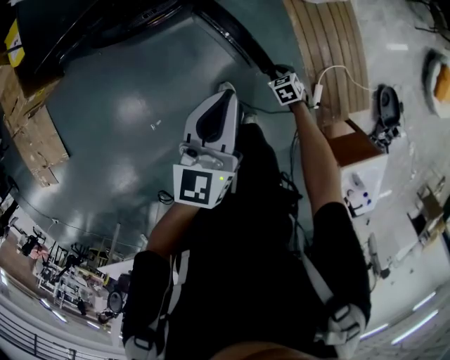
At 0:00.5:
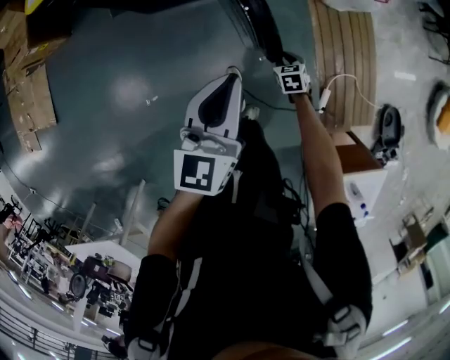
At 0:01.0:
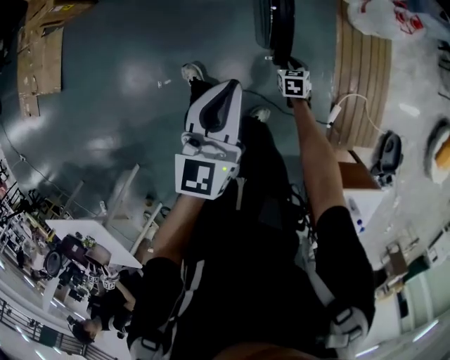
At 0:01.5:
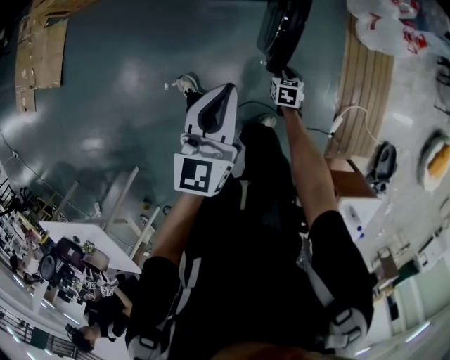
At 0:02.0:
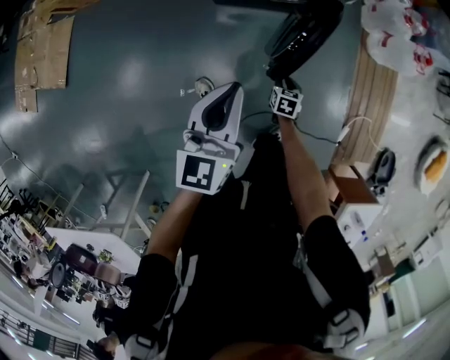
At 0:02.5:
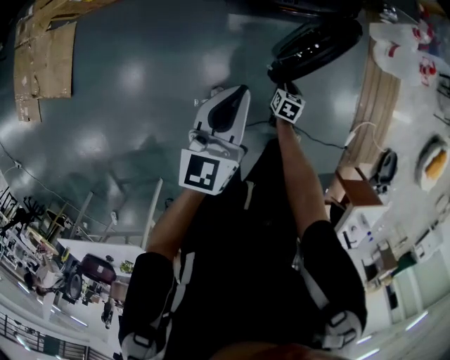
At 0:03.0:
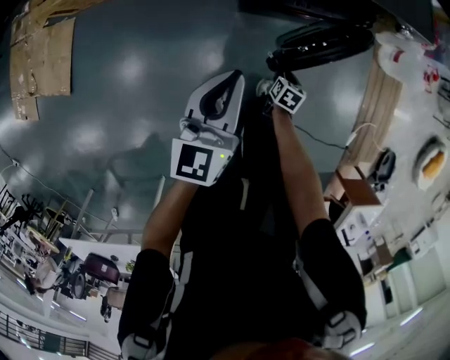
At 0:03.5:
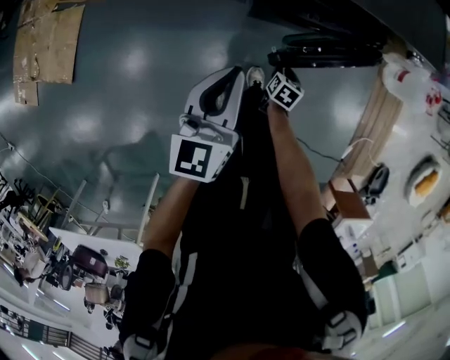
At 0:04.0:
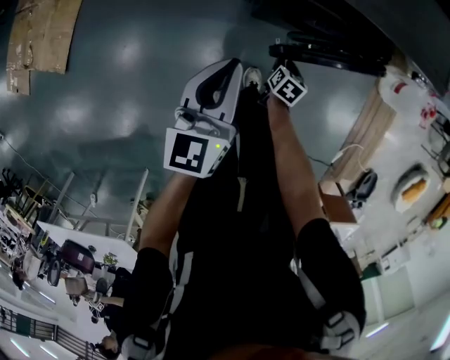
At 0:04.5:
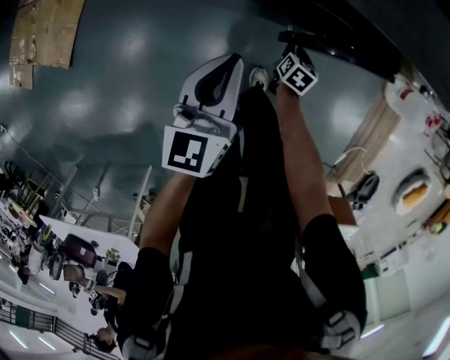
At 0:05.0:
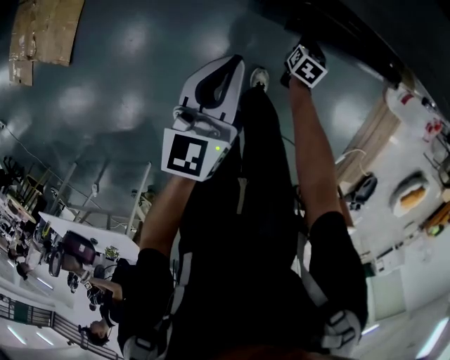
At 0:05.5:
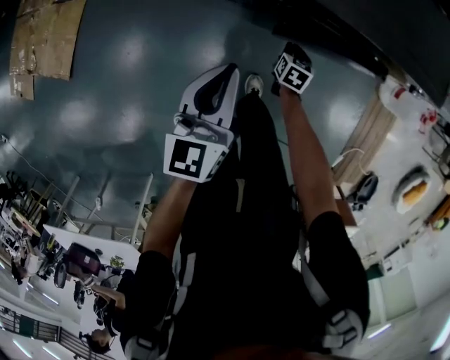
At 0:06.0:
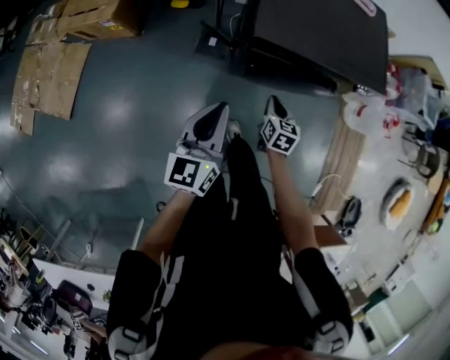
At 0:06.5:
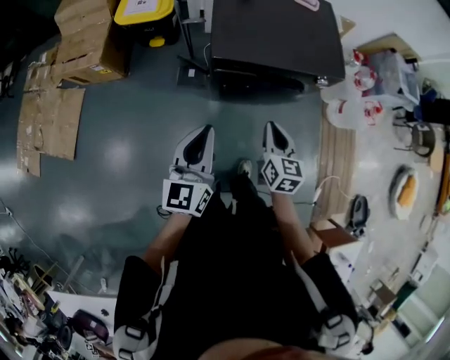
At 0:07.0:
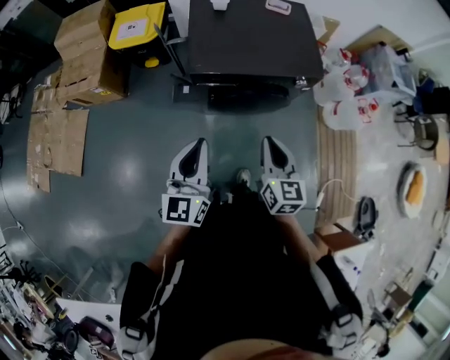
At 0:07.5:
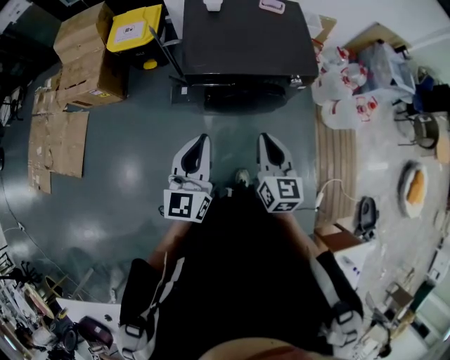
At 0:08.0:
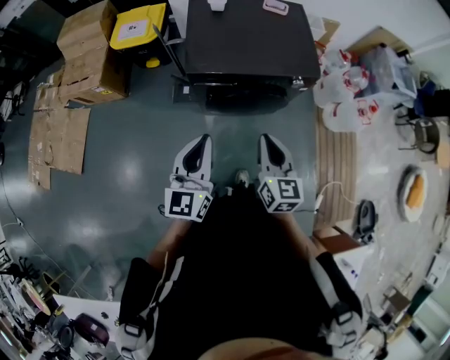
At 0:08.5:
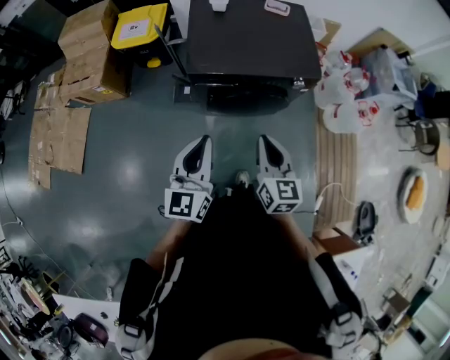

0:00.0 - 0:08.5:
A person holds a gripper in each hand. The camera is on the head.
0:00.0 - 0:02.0: Both grippers travel together to the left, roughly 35 cm.
0:02.0 - 0:04.0: Both grippers travel together to the left and forward, roughly 30 cm.
0:04.0 - 0:06.5: The left gripper goes some 20 cm upward. The right gripper goes roughly 40 cm upward, points its fingers some 30 degrees further upward, and closes up.
0:06.5 - 0:08.5: The right gripper heads upward and to the right, covering some 10 cm. The left gripper moves to the right, approximately 10 cm.

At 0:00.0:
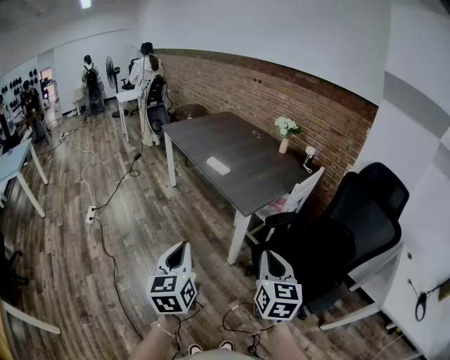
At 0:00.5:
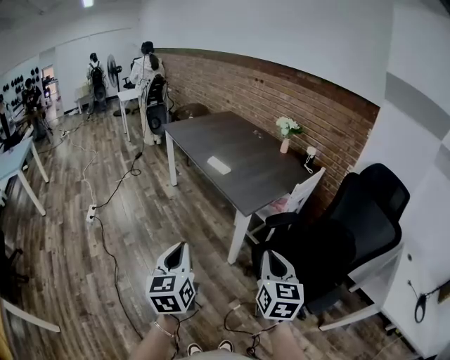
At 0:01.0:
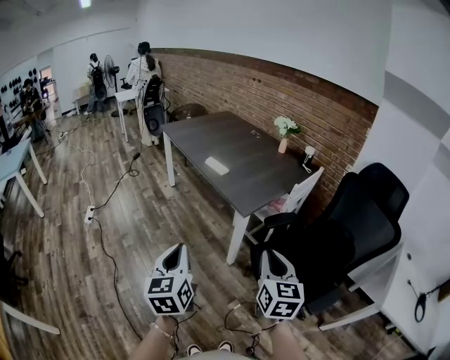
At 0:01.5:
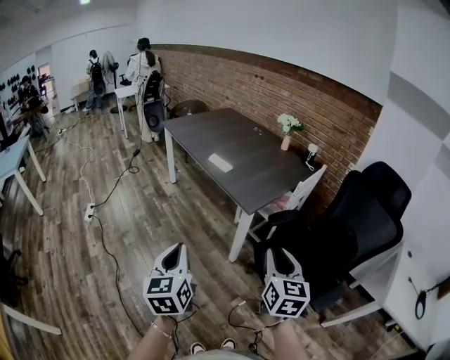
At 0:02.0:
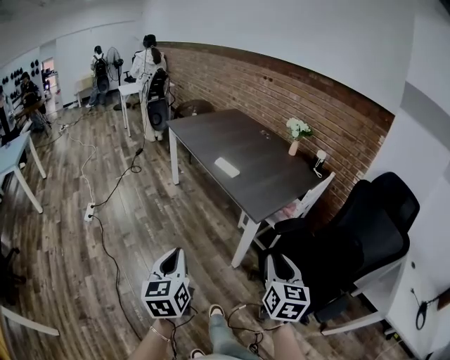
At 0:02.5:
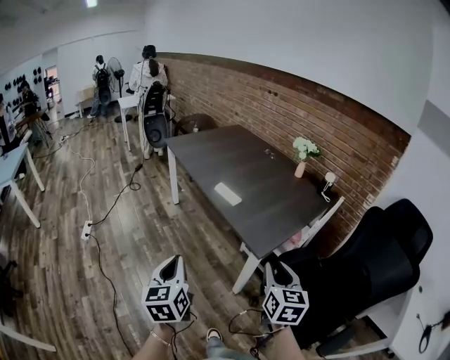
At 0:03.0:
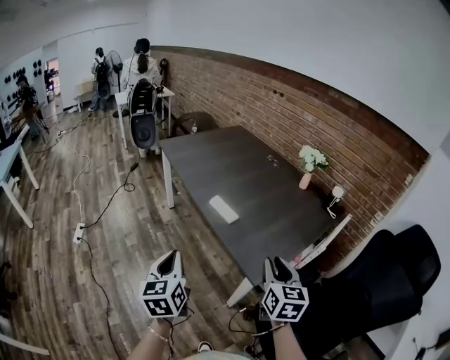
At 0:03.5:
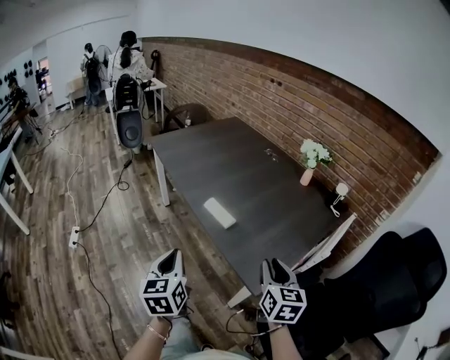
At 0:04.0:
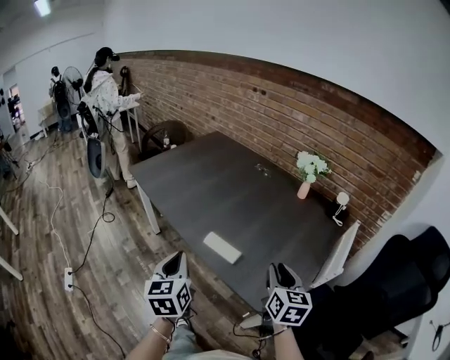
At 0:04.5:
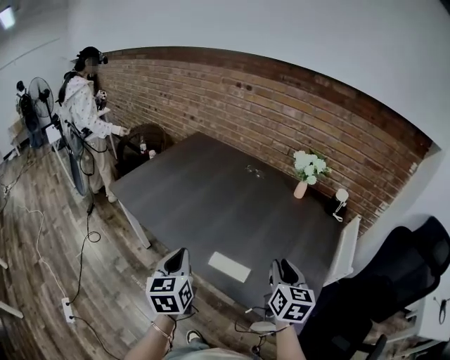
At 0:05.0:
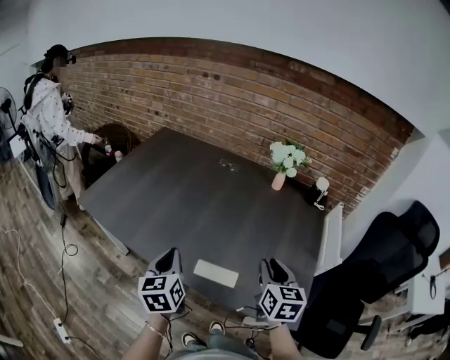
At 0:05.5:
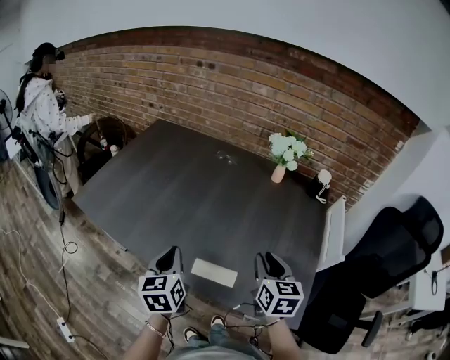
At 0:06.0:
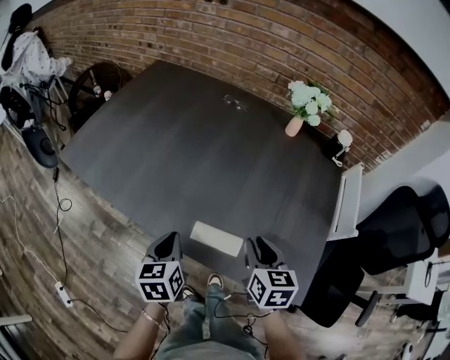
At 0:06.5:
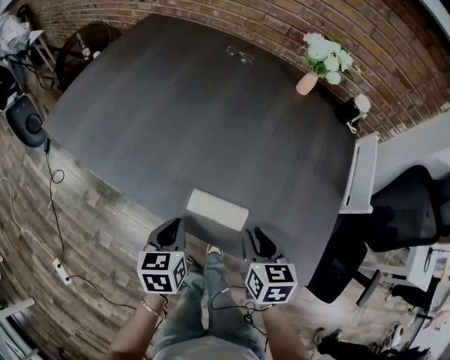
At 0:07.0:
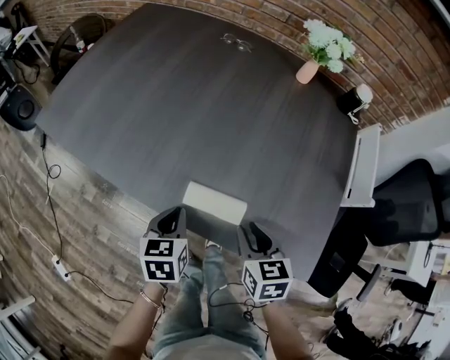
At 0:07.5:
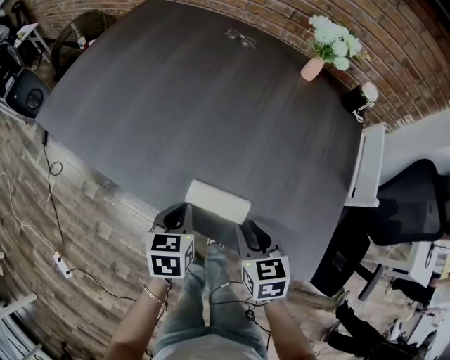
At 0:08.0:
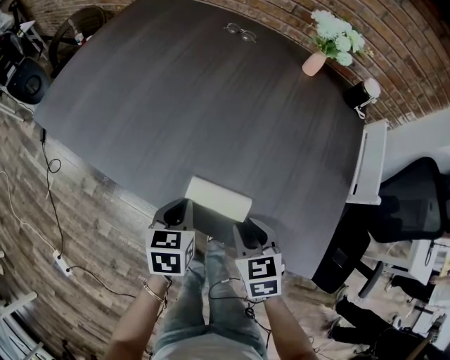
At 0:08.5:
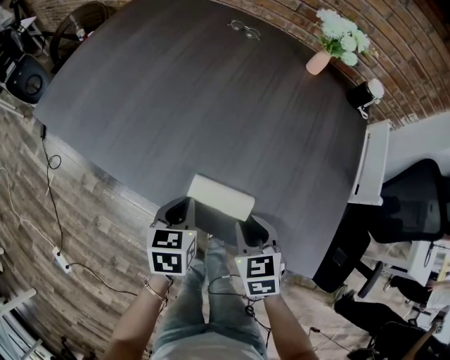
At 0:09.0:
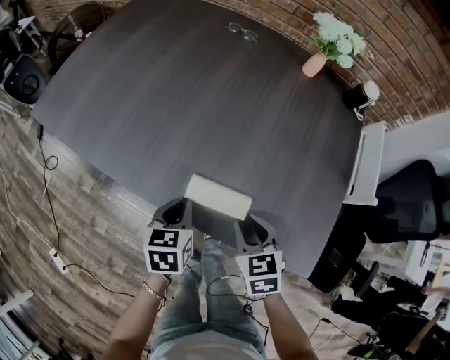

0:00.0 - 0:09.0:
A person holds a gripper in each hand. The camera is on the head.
0:00.0 - 0:02.0: The left gripper travels to the left and forward by roughly 10 cm. Meanwhile the right gripper moves forward, about 5 cm, and opens its fingers.
0:02.0 - 0:04.5: The pair of grippers is taken forward, approximately 70 cm. The right gripper rotates approximately 20 degrees, while the left gripper swivels about 20 degrees.
0:04.5 - 0:07.0: Both grippers move downward, about 20 cm. The right gripper turns by about 30 degrees. Meanwhile the left gripper changes its angle by approximately 30 degrees.
0:07.0 - 0:09.0: The grippers make only small movements.

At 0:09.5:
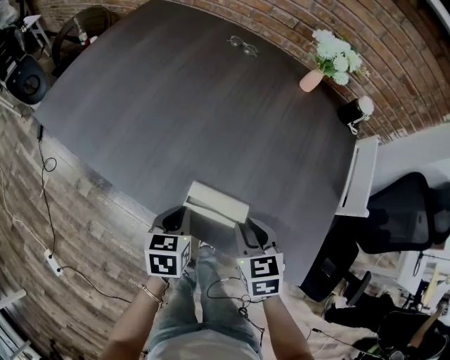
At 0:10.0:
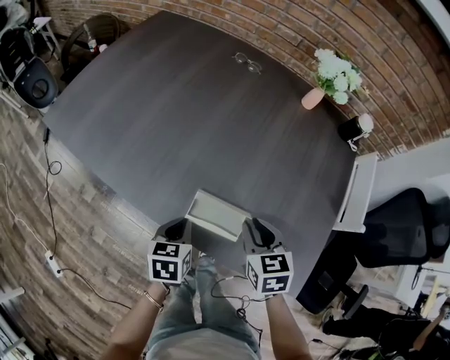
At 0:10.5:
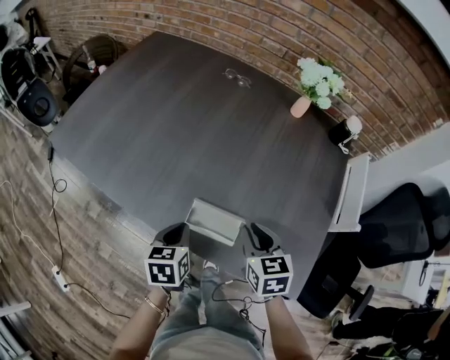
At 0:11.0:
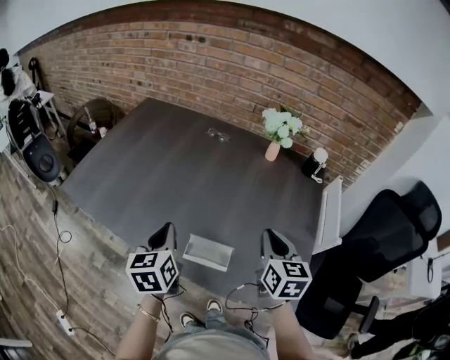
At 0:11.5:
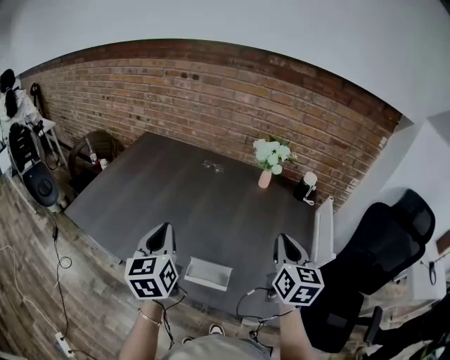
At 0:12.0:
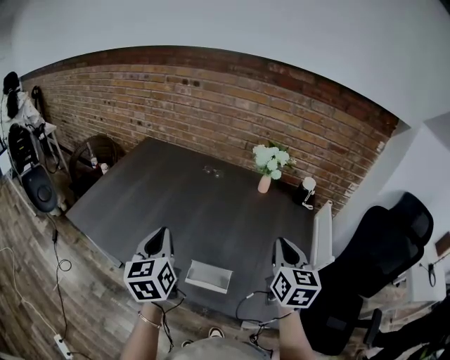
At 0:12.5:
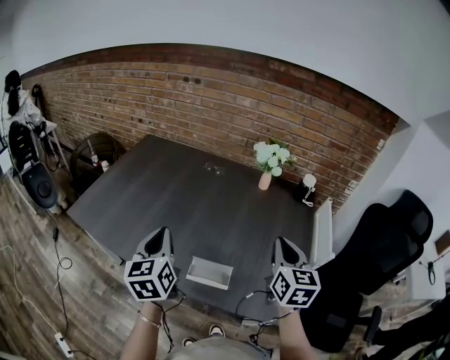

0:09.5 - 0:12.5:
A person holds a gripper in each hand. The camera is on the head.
0:09.5 - 0:11.0: The right gripper heads upward and to the right, covering approximately 20 cm, and swivels roughly 30 degrees. Meanwhile the left gripper shifts about 20 cm upward, and changes its angle by some 20 degrees.
0:11.0 - 0:12.5: The grippers both shift upward by approximately 10 cm.

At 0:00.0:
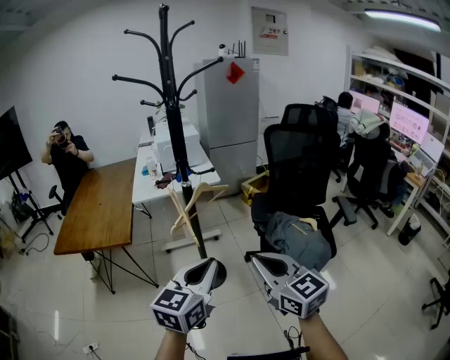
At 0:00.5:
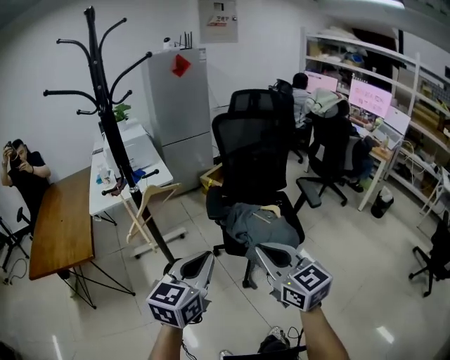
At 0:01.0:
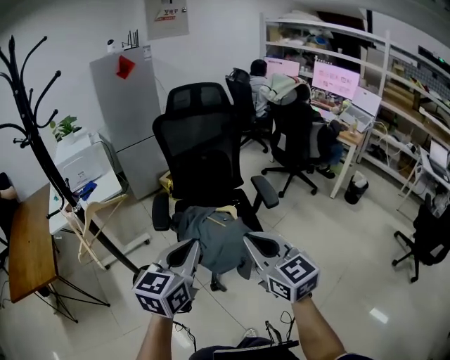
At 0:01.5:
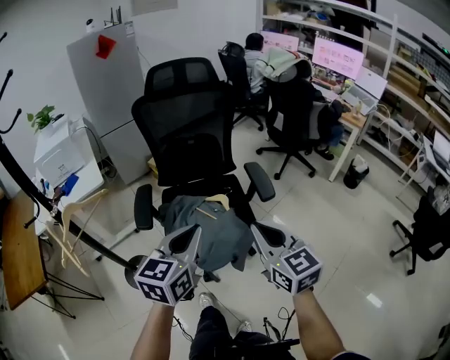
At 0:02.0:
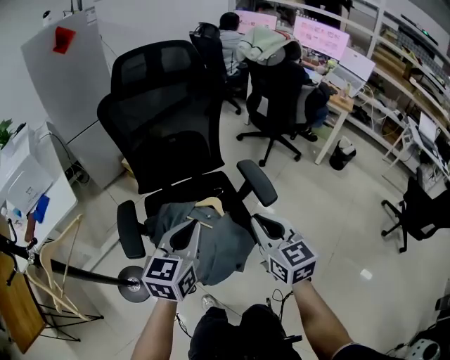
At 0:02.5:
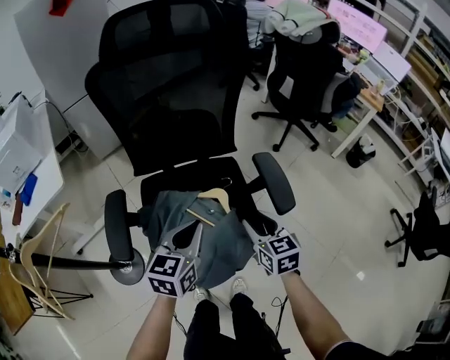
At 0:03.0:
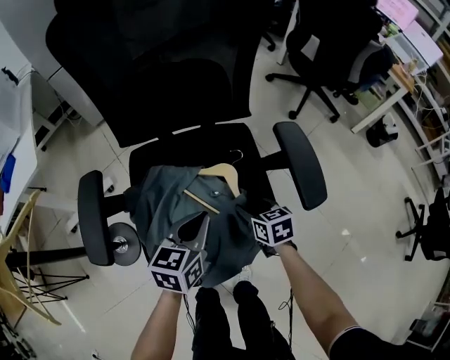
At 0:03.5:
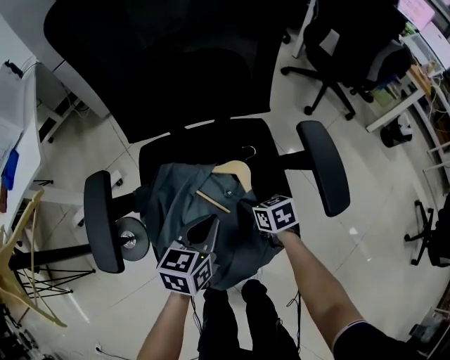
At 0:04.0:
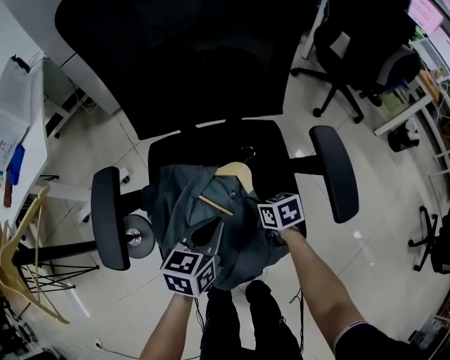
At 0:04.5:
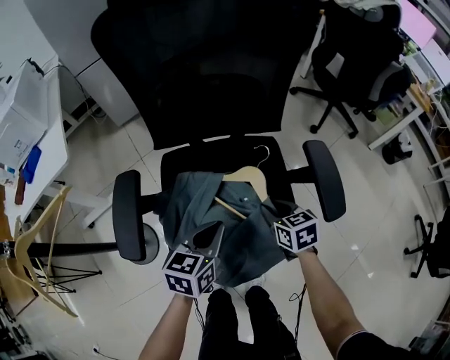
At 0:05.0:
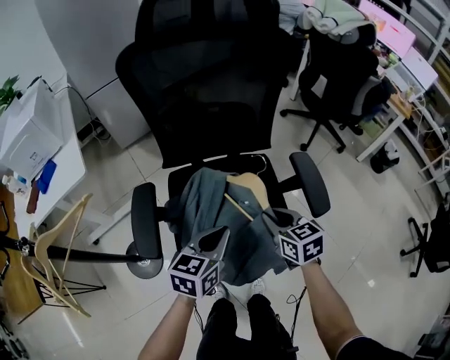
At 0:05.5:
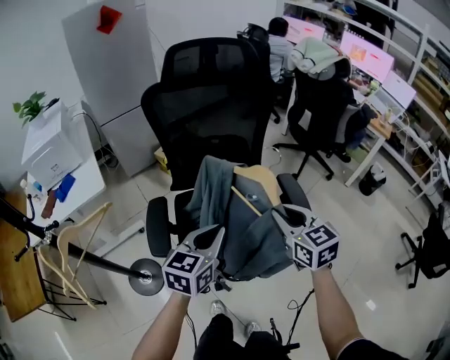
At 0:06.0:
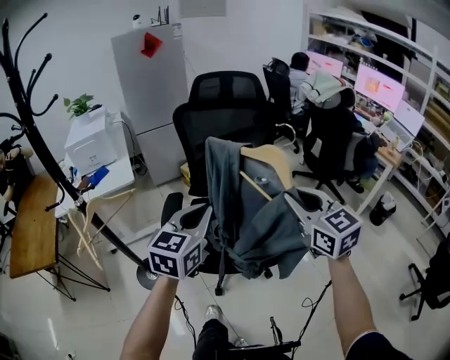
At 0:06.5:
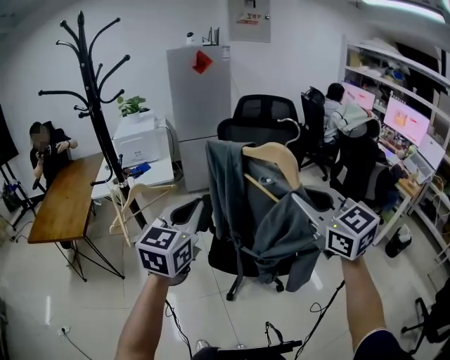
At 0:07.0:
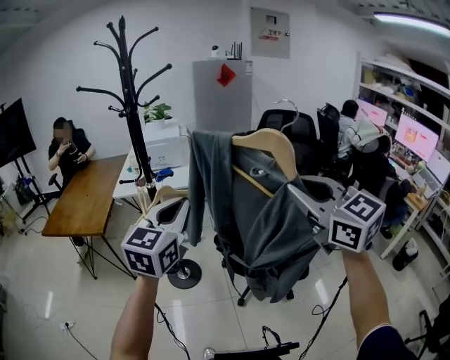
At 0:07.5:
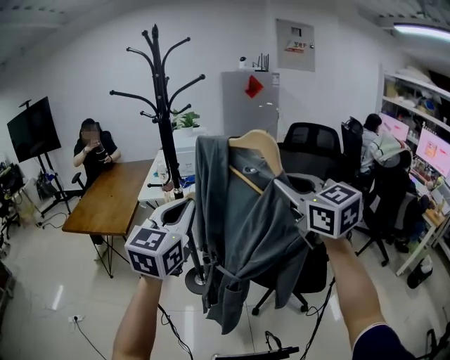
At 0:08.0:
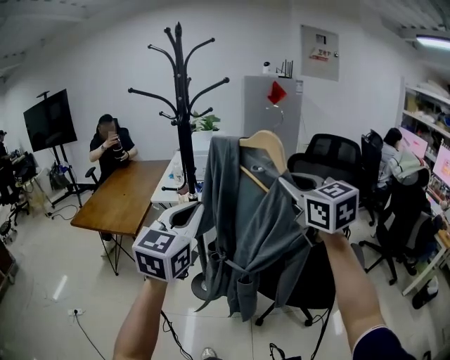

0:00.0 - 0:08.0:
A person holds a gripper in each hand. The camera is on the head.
0:00.0 - 0:02.0: The two grippers travel together, roughly 50 cm. The left gripper changes its angle by about 20 degrees; the right gripper swivels approximately 40 degrees.
0:02.0 - 0:04.0: The left gripper shifts roughly 30 cm downward, and swivels about 30 degrees. The right gripper goes some 40 cm downward and forward, tilts its fingers approximately 30 degrees downward, and opens its fingers.
0:04.0 - 0:06.0: Both grippers move upward, about 50 cm. The left gripper rotates about 30 degrees. Meanwhile the right gripper points its fingers some 40 degrees further upward.
0:06.0 - 0:08.0: The right gripper changes place by some 35 cm, and rotates approximately 30 degrees. Meanwhile the left gripper shifts by some 40 cm, and rotates some 30 degrees.
